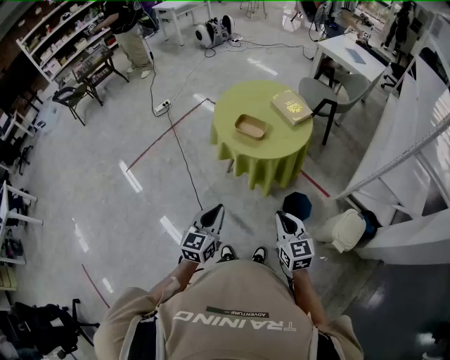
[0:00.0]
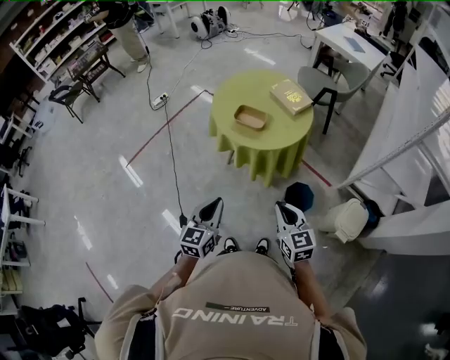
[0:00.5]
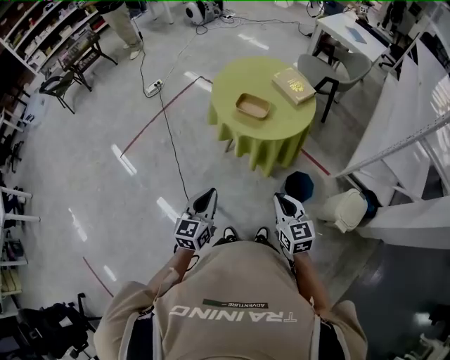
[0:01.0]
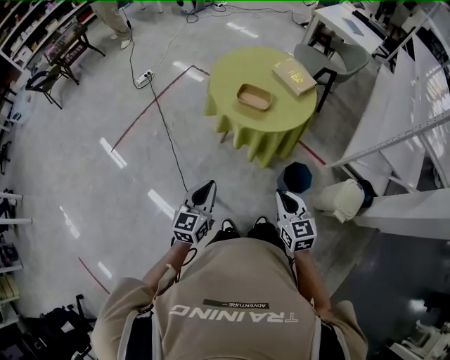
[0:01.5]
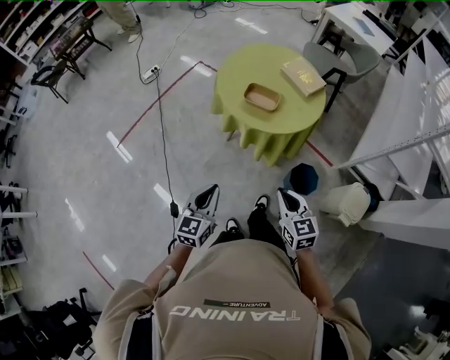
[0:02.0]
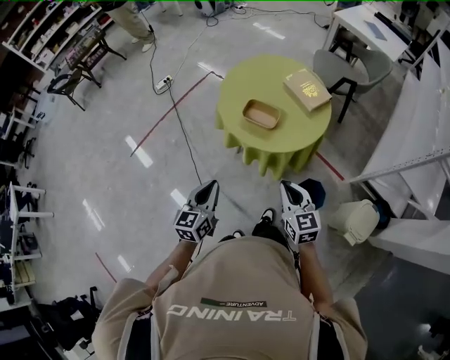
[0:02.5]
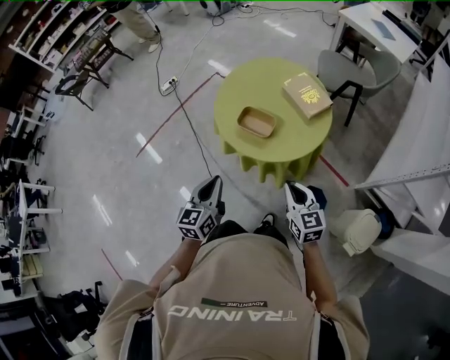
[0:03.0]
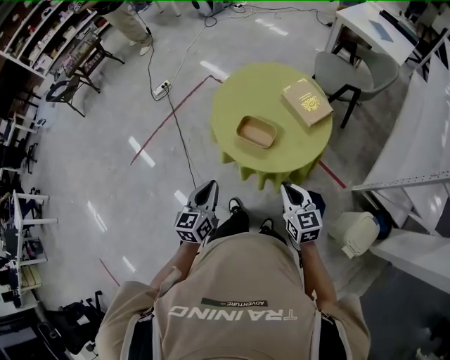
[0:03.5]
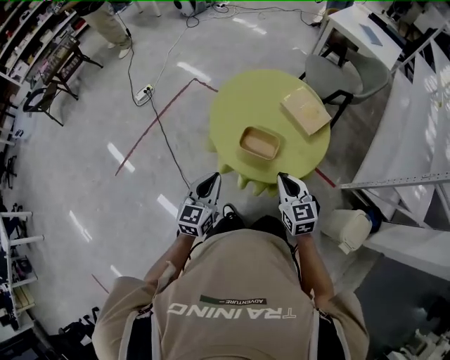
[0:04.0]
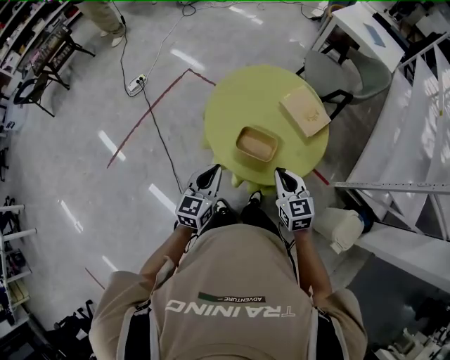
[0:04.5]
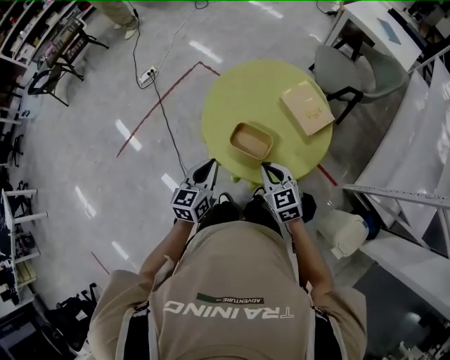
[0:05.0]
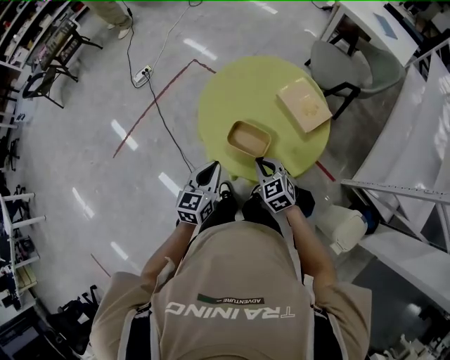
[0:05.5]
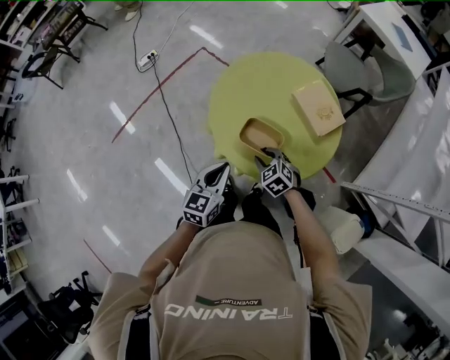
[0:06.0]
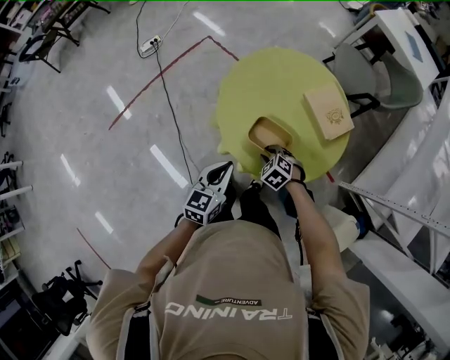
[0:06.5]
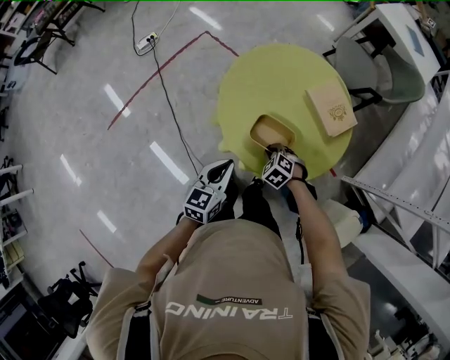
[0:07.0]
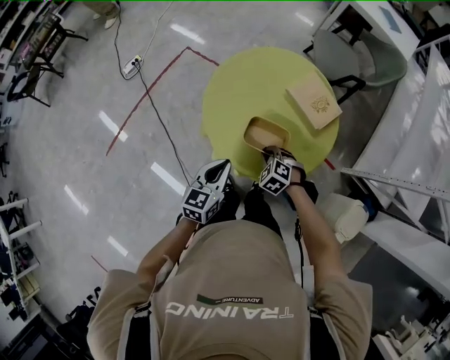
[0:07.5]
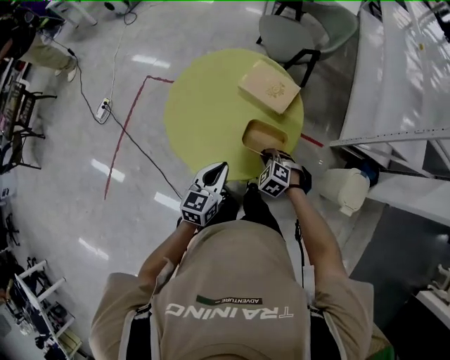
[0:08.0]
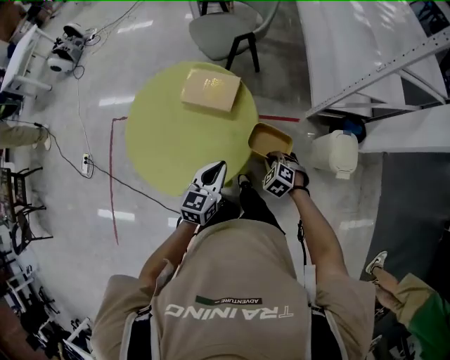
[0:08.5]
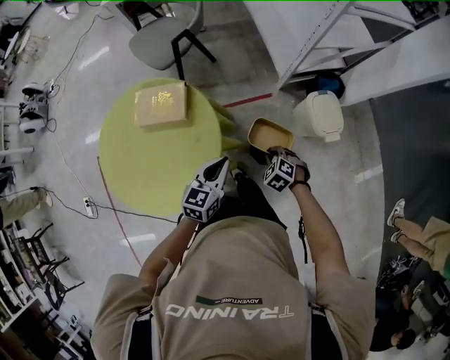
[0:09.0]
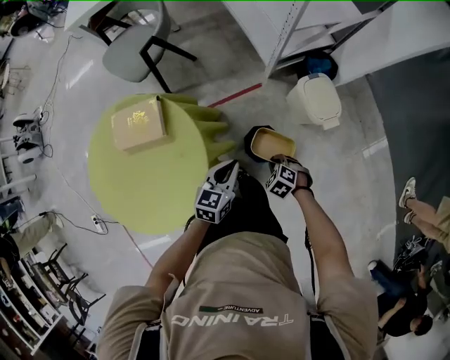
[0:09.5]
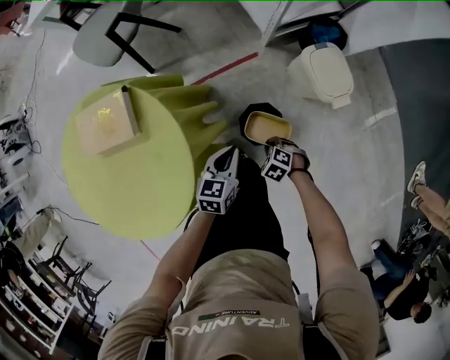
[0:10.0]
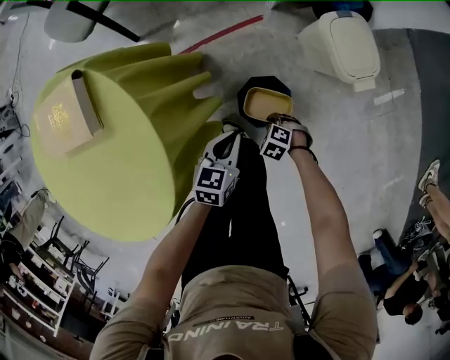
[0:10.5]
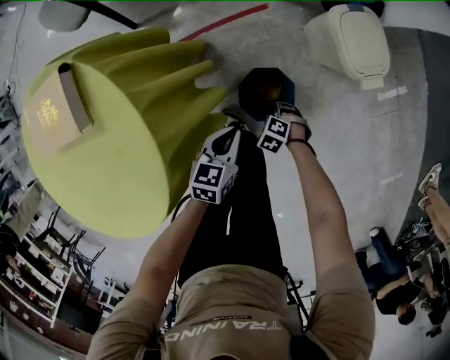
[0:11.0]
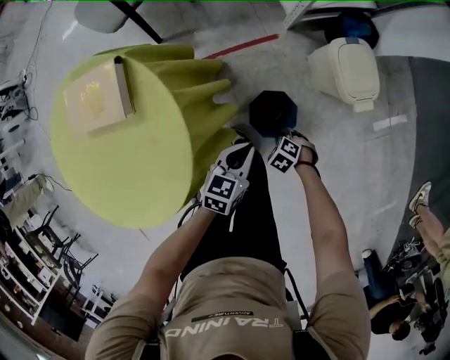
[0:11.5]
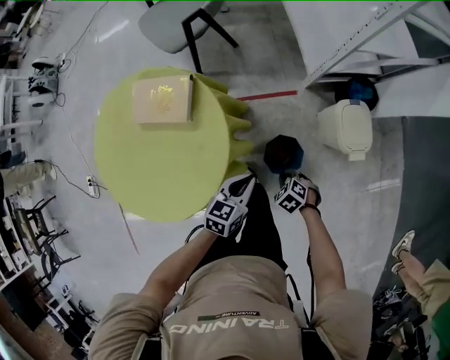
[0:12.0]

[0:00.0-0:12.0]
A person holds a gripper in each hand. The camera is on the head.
0:00.0 to 0:02.0: The two grippers go about 10 cm to the left and forward.
0:02.0 to 0:04.0: The two grippers go some 30 cm forward.
0:04.0 to 0:06.0: The left gripper travels to the right, forward and downward by roughly 10 cm; the right gripper travels downward and forward by about 20 cm, changes its angle by approximately 40 degrees, and opens its fingers.
0:06.0 to 0:08.0: The right gripper changes place by some 10 cm, turns by roughly 20 degrees, and closes. Meanwhile the left gripper ends up approximately 10 cm from where it was, and rotates about 20 degrees.
0:08.0 to 0:10.0: The left gripper ends up roughly 50 cm from where it was, and swivels roughly 50 degrees. Meanwhile the right gripper shifts by roughly 40 cm, and rotates around the line of its fingers by about 50 degrees, clockwise from behind.
0:10.0 to 0:12.0: The right gripper reaches about 20 cm downward, then returns, and opens and closes again, while the left gripper moves about 15 cm downward and comes back.

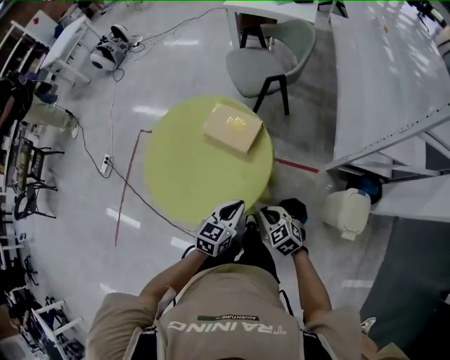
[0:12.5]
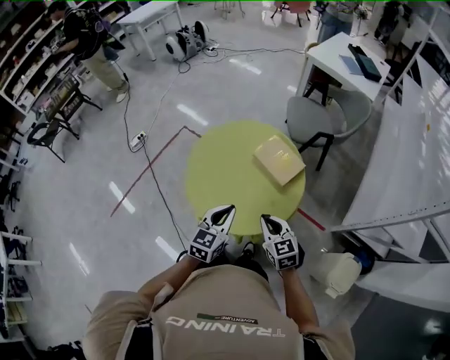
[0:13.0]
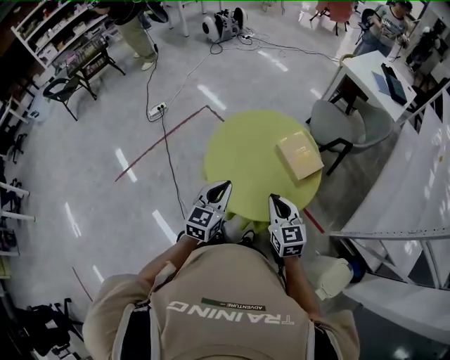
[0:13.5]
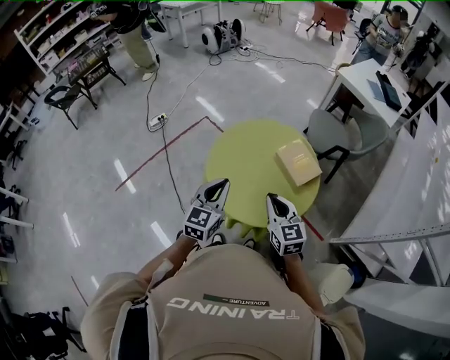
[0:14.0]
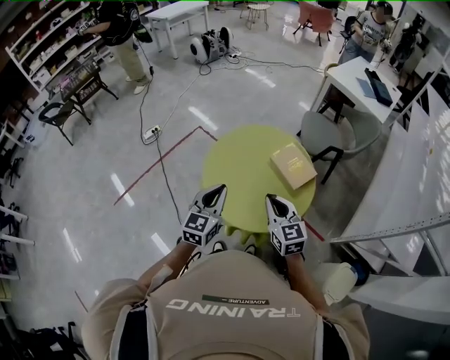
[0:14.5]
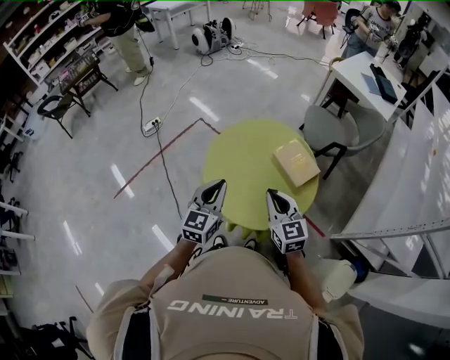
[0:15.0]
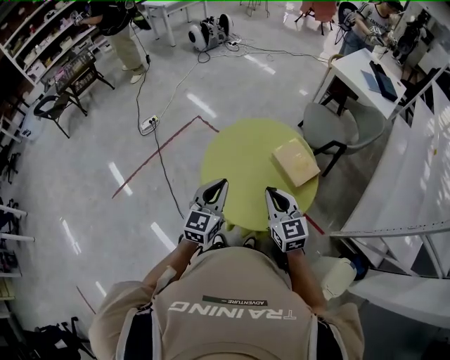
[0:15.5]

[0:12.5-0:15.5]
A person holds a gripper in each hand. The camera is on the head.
0:12.5 to 0:14.0: The left gripper moves about 30 cm, and swivels some 40 degrees; the right gripper goes some 20 cm upward, and swivels approximately 30 degrees.
0:14.0 to 0:15.5: The right gripper moves roughly 5 cm.

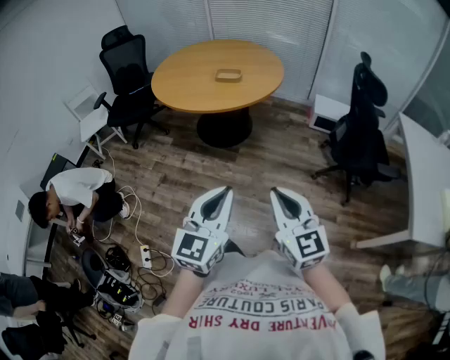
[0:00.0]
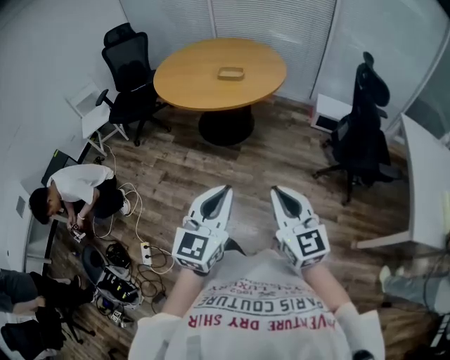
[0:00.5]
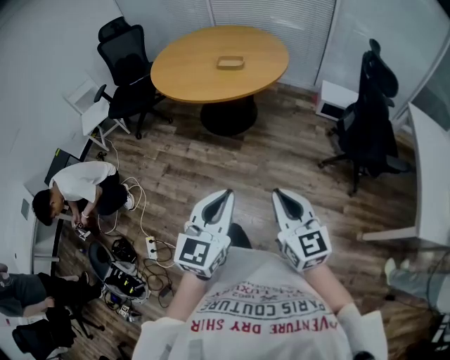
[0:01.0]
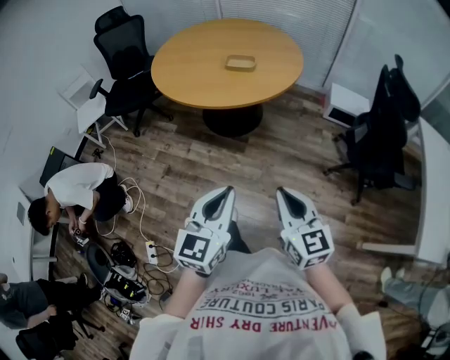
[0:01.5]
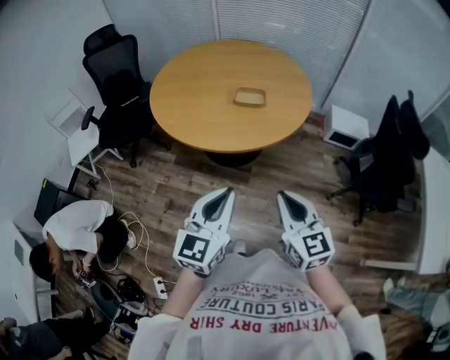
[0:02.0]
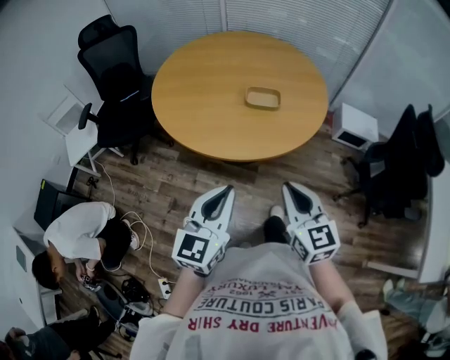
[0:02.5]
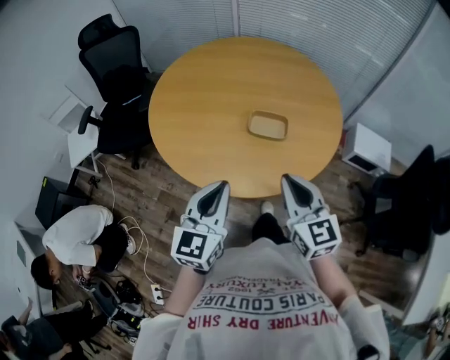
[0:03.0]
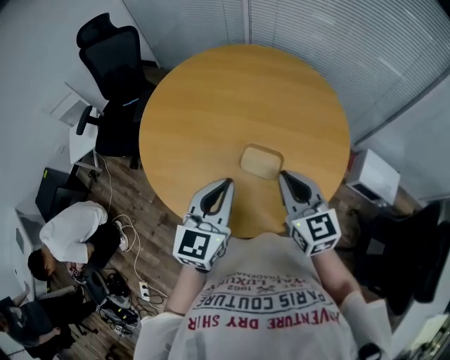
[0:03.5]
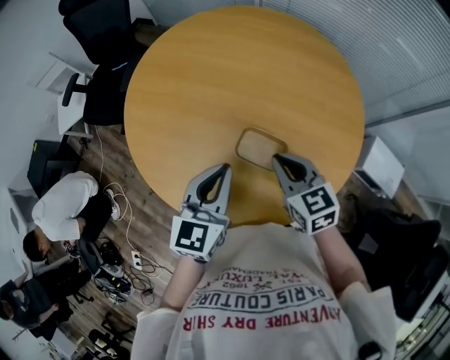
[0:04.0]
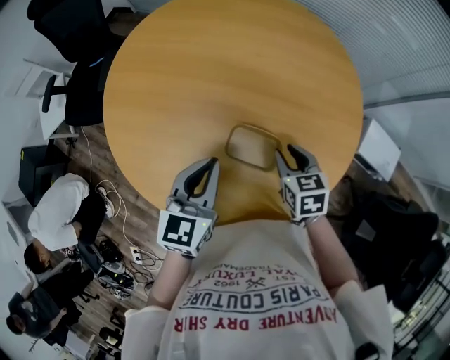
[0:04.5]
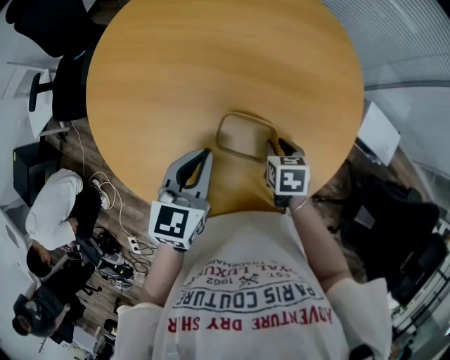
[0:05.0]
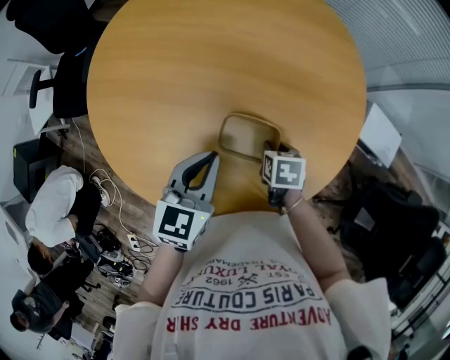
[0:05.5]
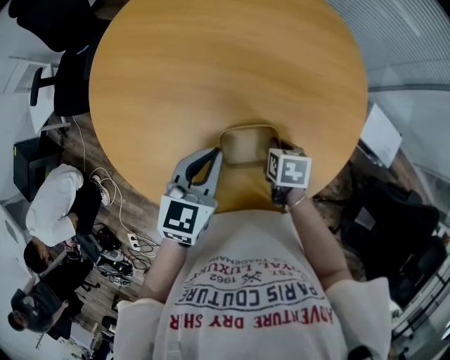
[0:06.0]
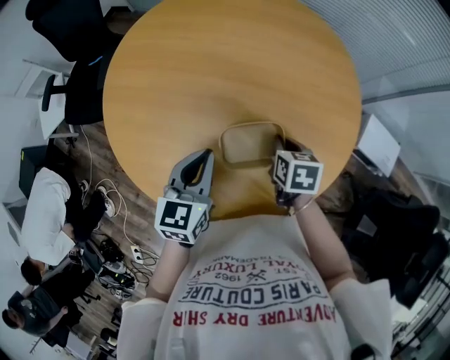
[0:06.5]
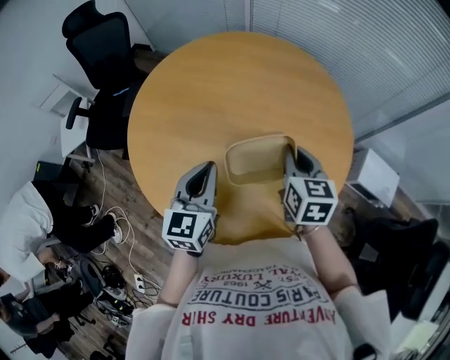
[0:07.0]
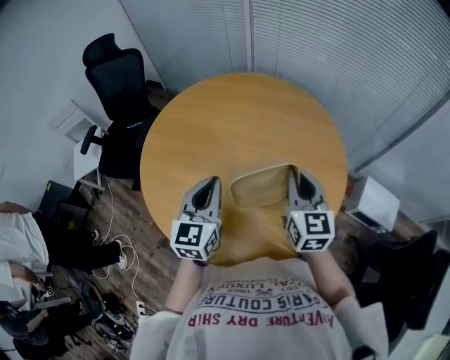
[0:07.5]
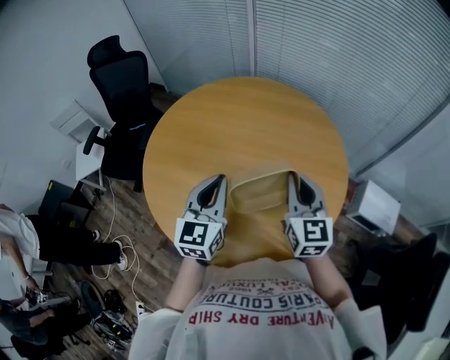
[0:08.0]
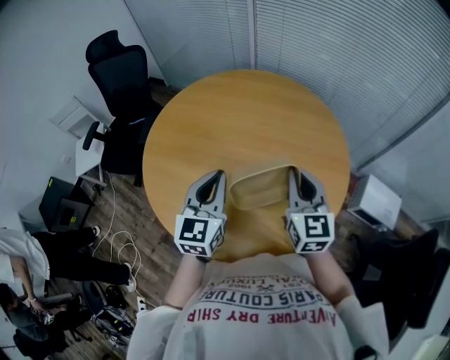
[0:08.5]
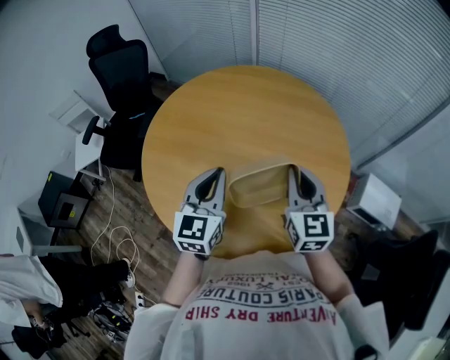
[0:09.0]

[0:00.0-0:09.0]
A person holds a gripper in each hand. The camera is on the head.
0:00.0 to 0:02.0: Both grippers travel together forward and to the left, some 30 cm.
0:02.0 to 0:04.5: The two grippers travel together, forward, some 50 cm. The left gripper rotates approximately 20 degrees. The right gripper shifts about 20 cm downward, tilts its fingers roughly 40 degrees downward, and opens.
0:04.5 to 0:07.0: The left gripper shifts by some 5 cm. Meanwhile the right gripper heads upward, covering about 15 cm, turns by about 20 degrees, and closes.
0:07.0 to 0:09.0: The grippers both shift upward by roughly 5 cm. The right gripper changes its angle by roughly 20 degrees.

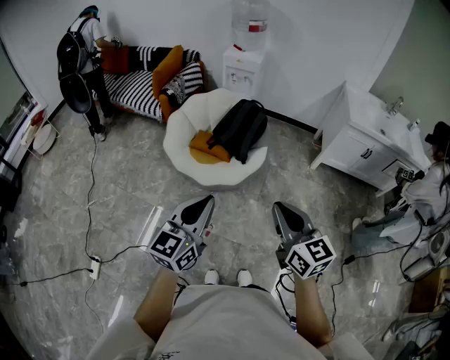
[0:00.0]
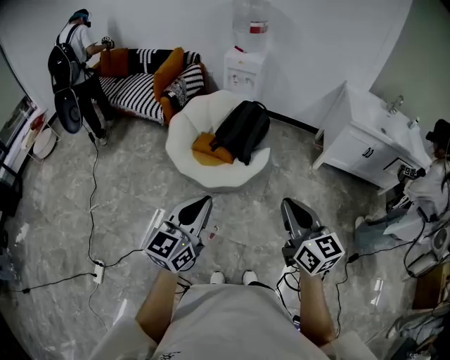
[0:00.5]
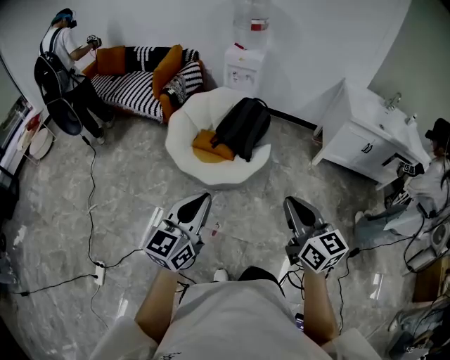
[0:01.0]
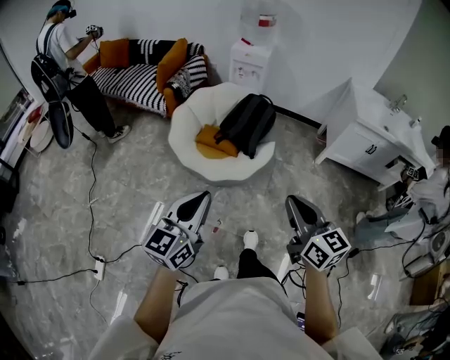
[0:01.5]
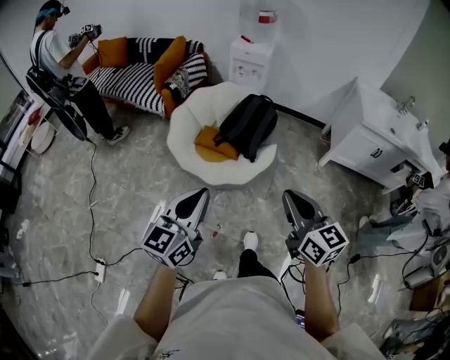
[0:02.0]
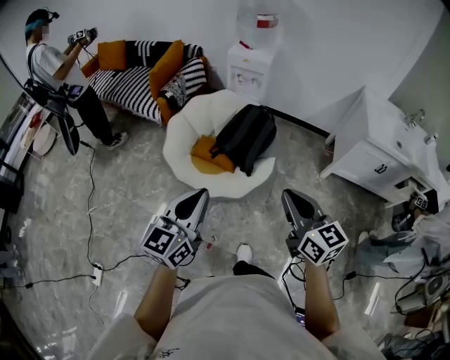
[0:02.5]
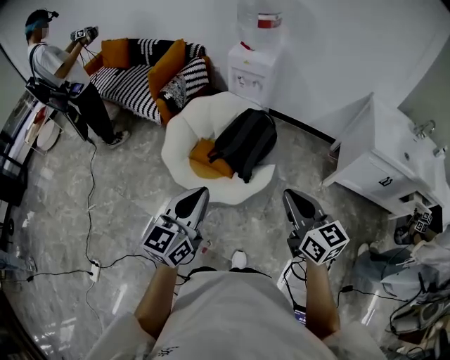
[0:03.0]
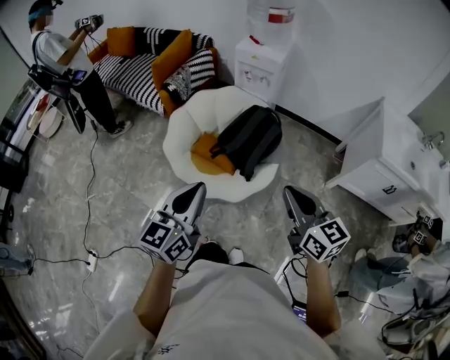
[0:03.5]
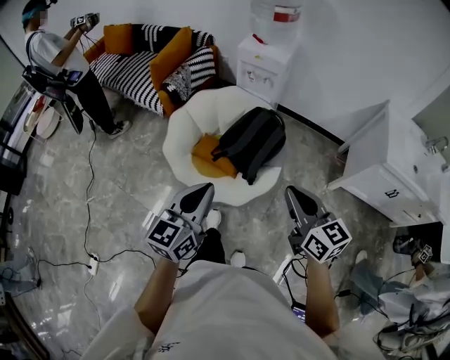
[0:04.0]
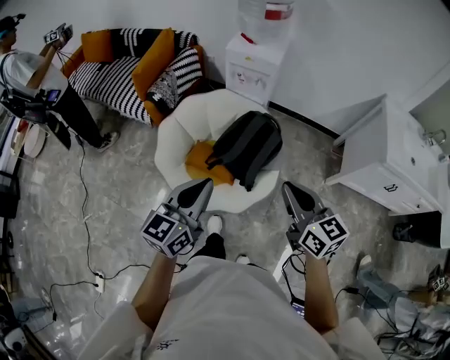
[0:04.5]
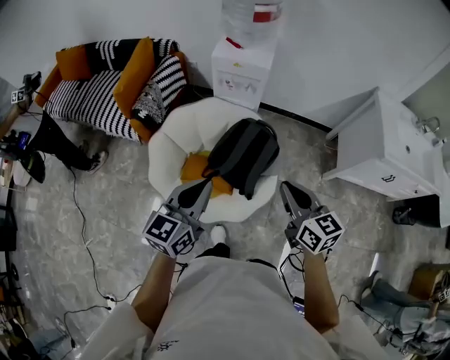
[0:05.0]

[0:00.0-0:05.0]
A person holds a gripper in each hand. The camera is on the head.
0:00.0 to 0:02.5: Both grippers travel together forward, some 20 cm.
0:02.5 to 0:05.0: Both grippers move forward, some 30 cm.
